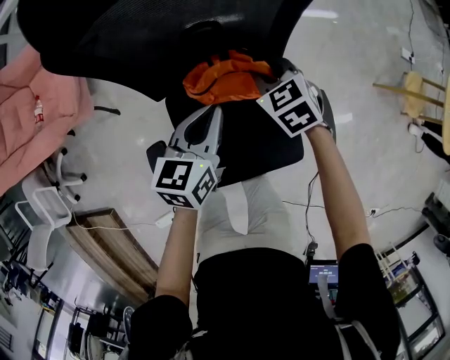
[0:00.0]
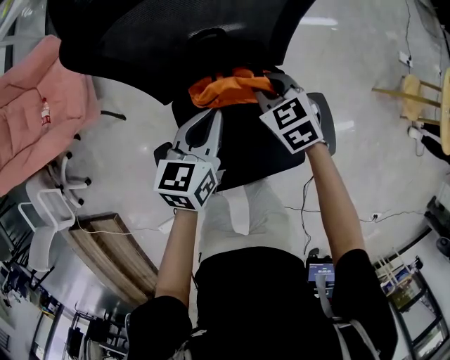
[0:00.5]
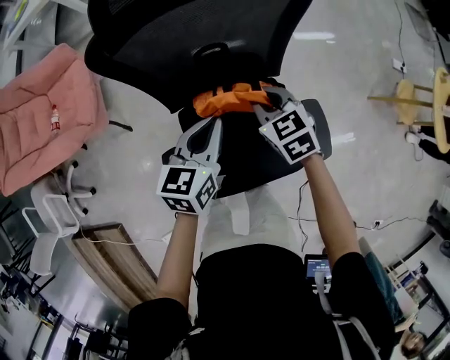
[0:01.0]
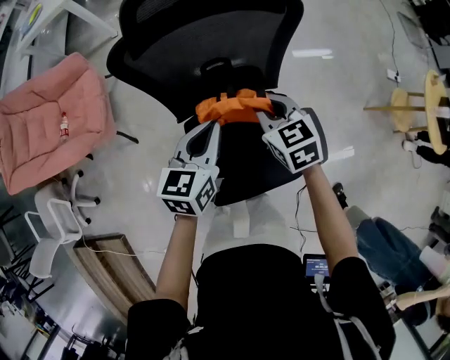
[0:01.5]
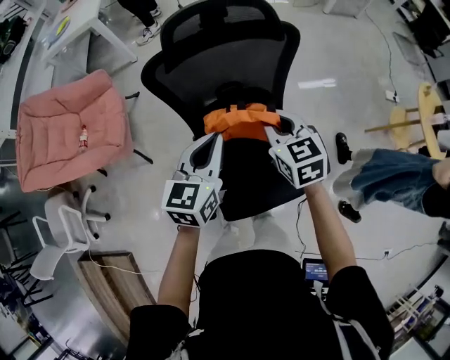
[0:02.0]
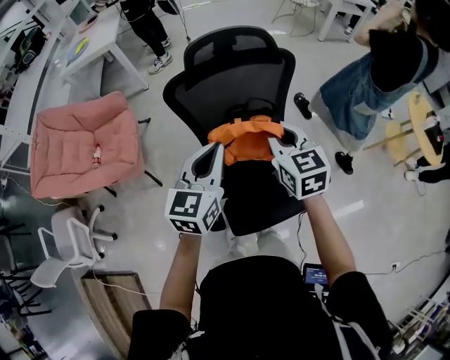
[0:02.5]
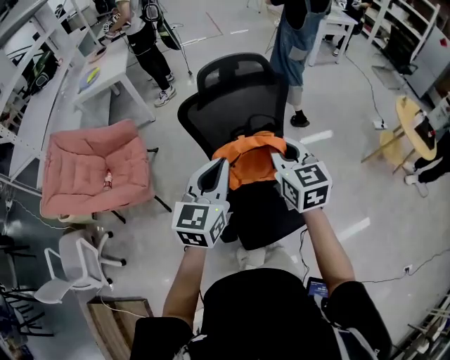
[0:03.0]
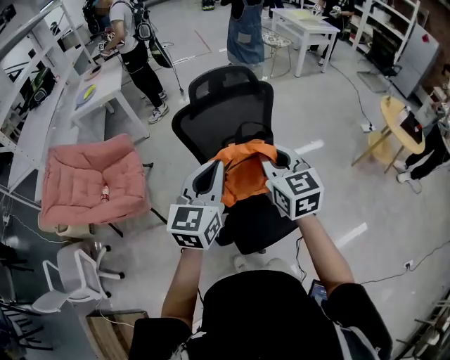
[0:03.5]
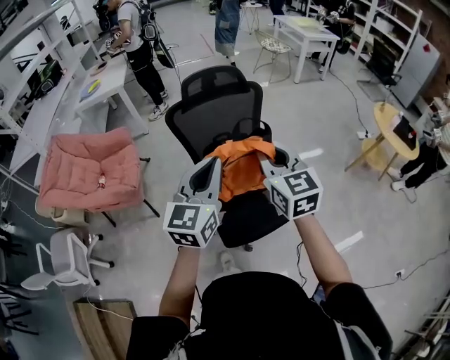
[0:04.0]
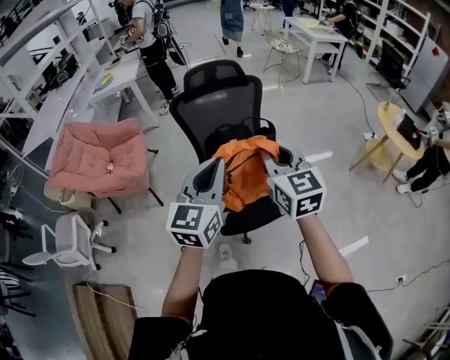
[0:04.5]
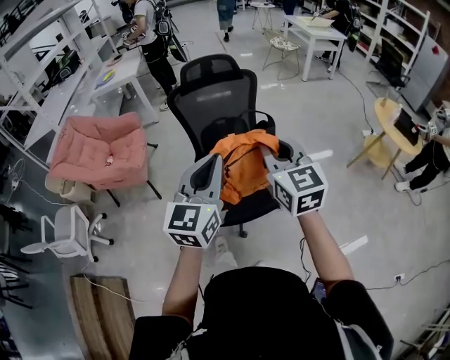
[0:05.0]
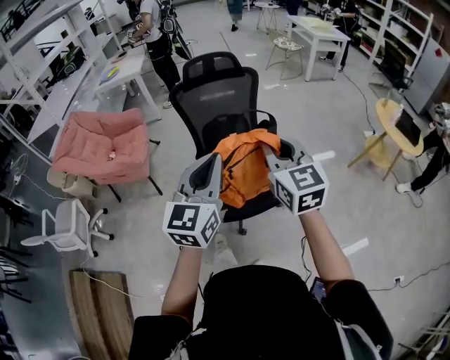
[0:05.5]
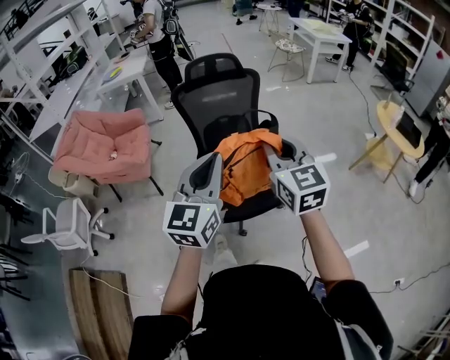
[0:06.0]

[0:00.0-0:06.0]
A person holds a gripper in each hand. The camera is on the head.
0:00.0 to 0:02.0: The grippers both shift upward by approximately 20 cm. The right gripper changes its angle by roughly 30 degrees.
0:02.0 to 0:04.0: The grippers both shift backward and upward by approximately 30 cm. The left gripper rotates about 20 degrees, while the right gripper rotates roughly 20 degrees.
0:04.0 to 0:06.0: The two grippers go about 20 cm backward and to the right.

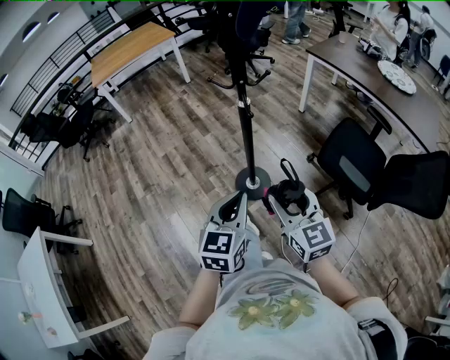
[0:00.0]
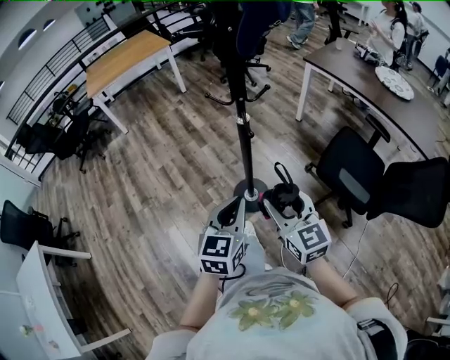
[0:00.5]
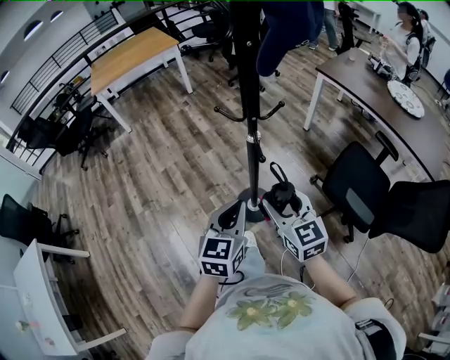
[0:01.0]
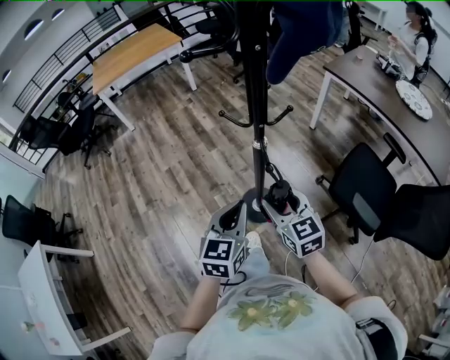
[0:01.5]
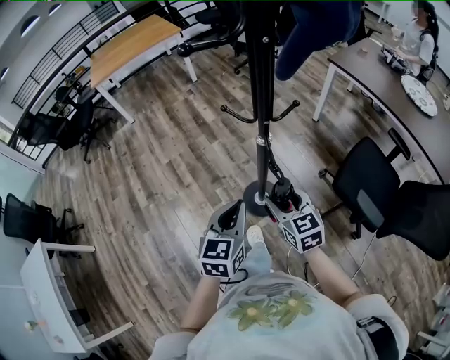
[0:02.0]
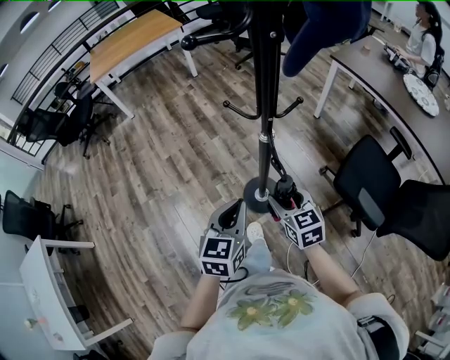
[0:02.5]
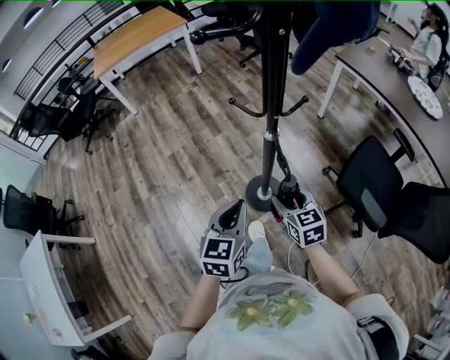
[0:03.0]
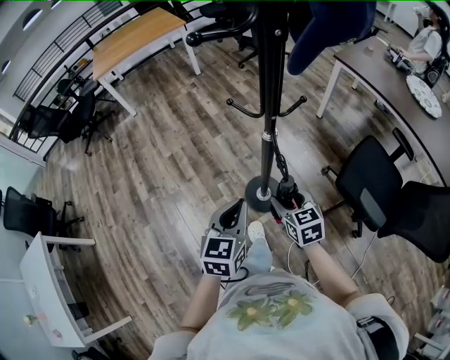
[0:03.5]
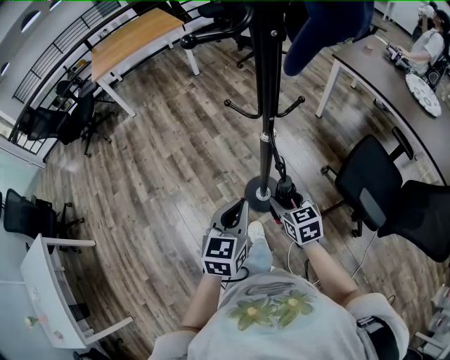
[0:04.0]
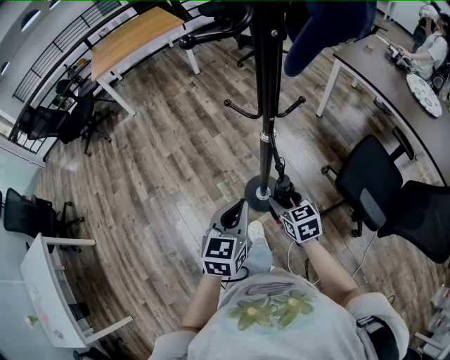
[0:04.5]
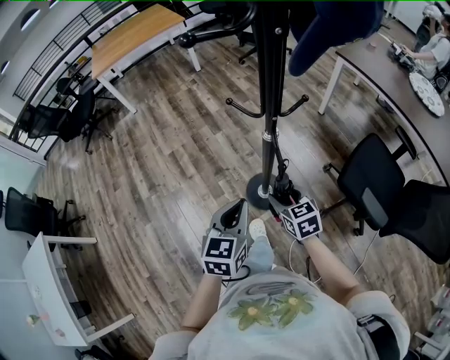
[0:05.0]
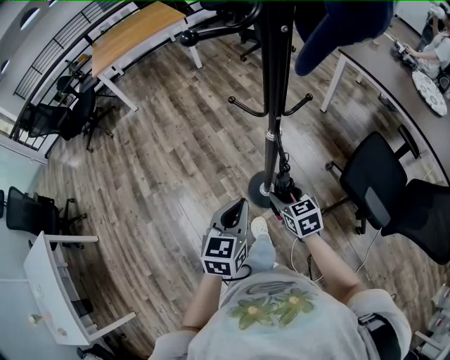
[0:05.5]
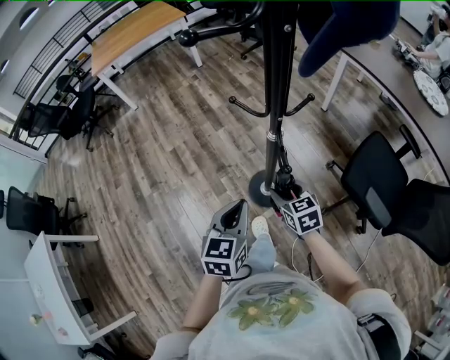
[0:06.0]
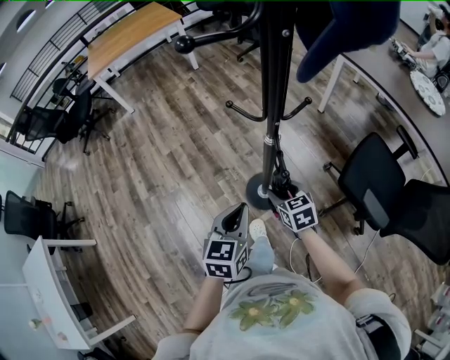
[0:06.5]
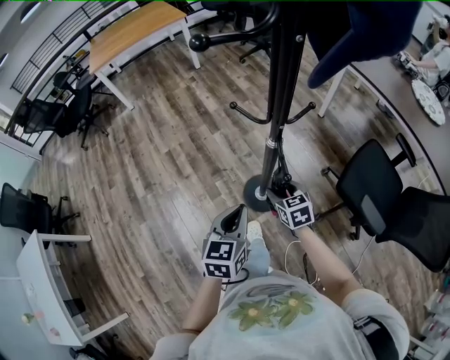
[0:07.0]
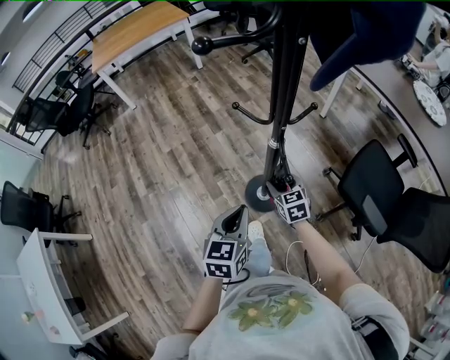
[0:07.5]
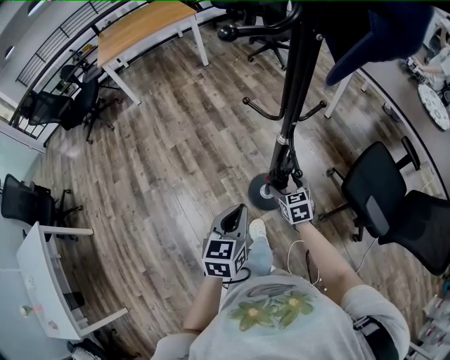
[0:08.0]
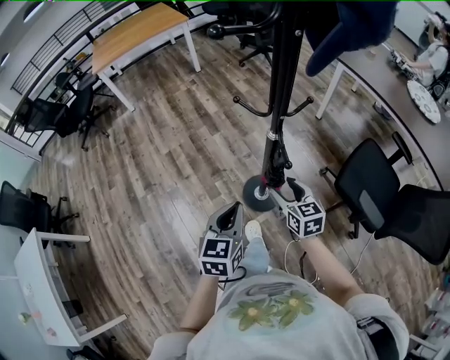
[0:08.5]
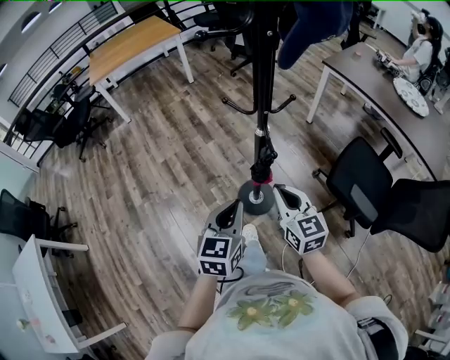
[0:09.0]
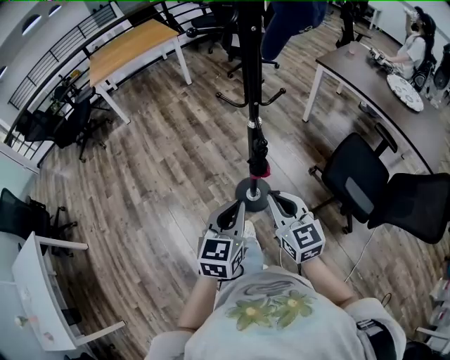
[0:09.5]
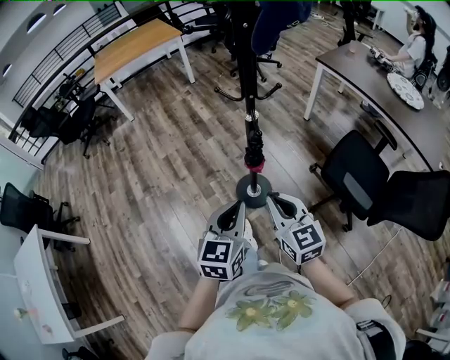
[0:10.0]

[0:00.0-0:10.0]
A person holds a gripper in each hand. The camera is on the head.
0:00.0 to 0:02.0: The right gripper heads forward and downward, covering about 25 cm. The left gripper shifts about 20 cm forward.
0:02.0 to 0:04.0: The right gripper moves downward, some 5 cm.
0:04.0 to 0:06.0: There are only small adjustments of the grippers.
0:06.0 to 0:08.0: The right gripper heads downward, covering some 5 cm, and opens.
0:08.0 to 0:10.0: The left gripper travels backward, upward and to the right by some 20 cm; the right gripper travels upward and backward by roughly 35 cm, changes its angle by about 30 degrees, and closes up.

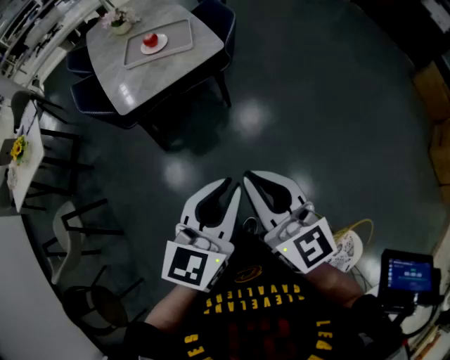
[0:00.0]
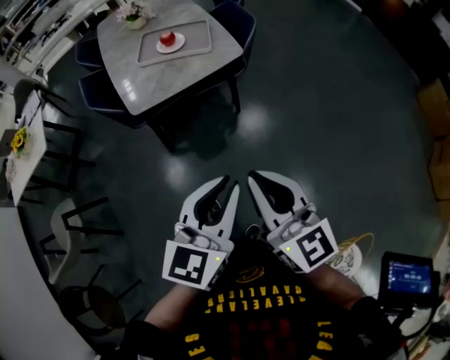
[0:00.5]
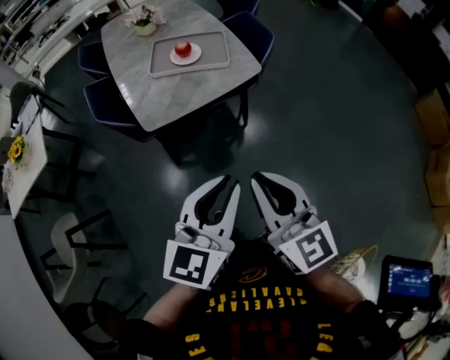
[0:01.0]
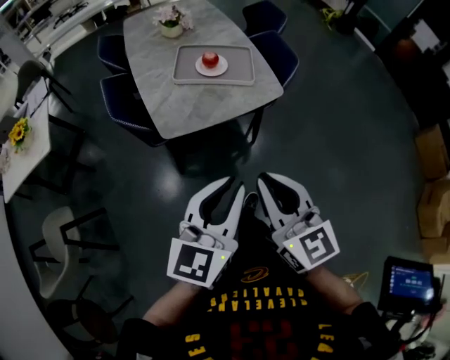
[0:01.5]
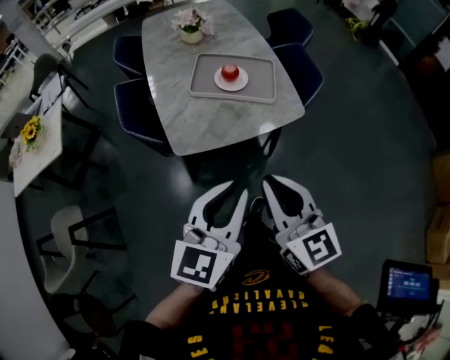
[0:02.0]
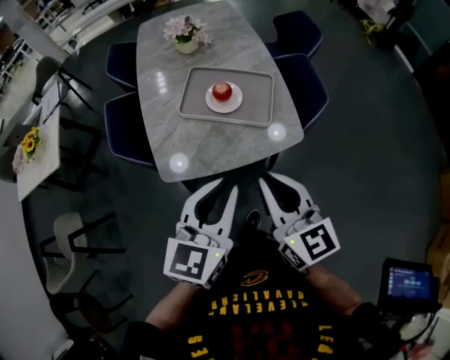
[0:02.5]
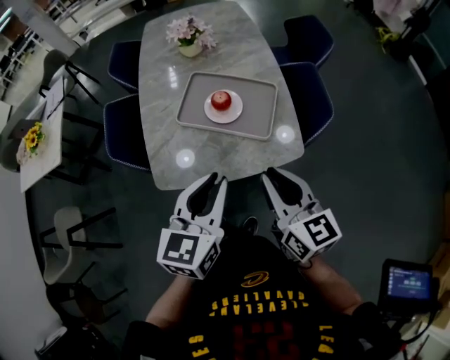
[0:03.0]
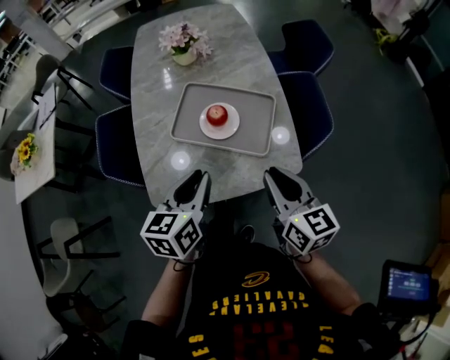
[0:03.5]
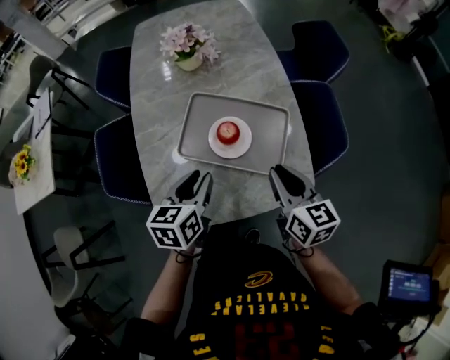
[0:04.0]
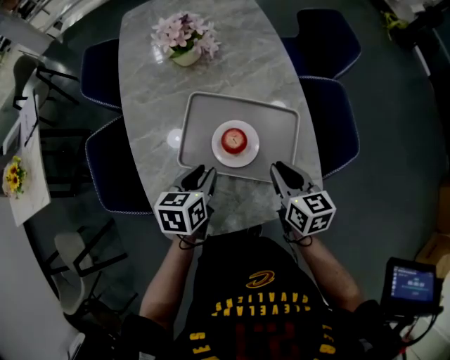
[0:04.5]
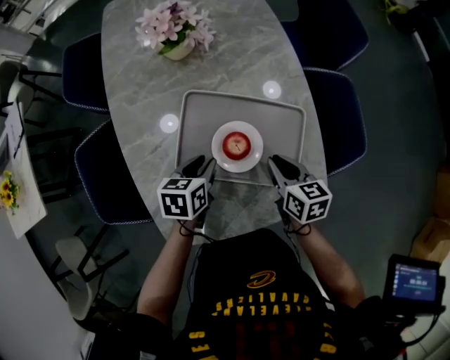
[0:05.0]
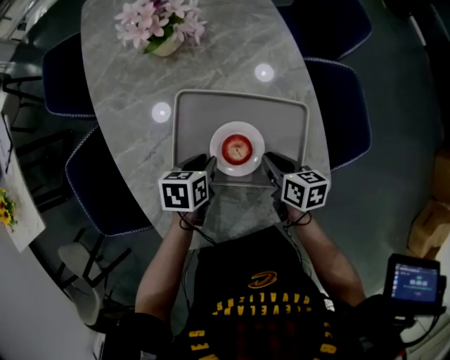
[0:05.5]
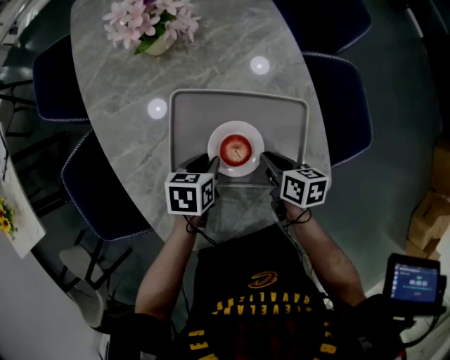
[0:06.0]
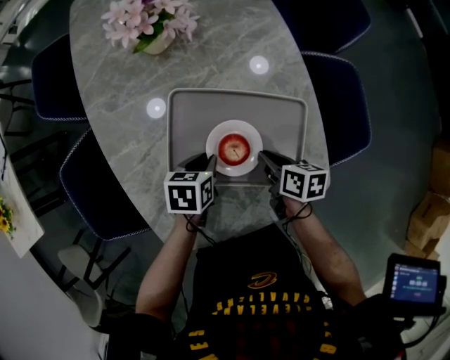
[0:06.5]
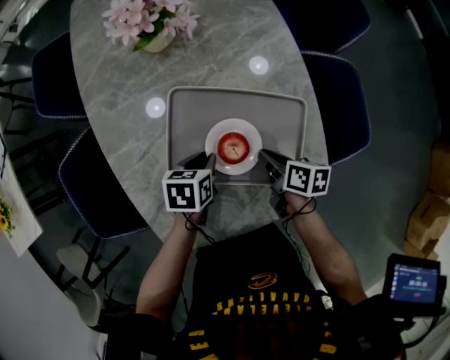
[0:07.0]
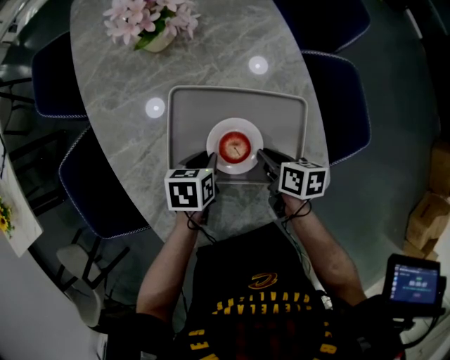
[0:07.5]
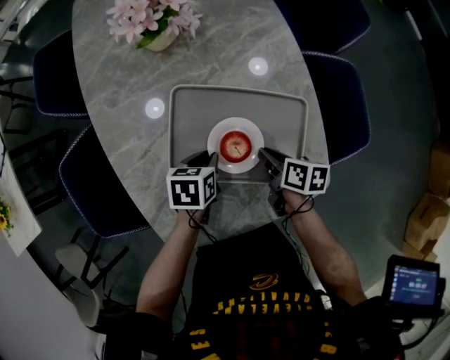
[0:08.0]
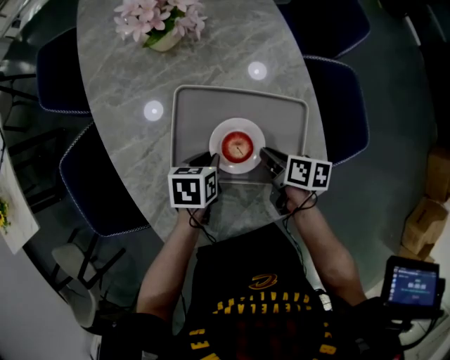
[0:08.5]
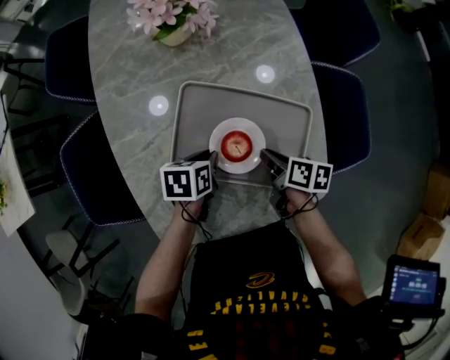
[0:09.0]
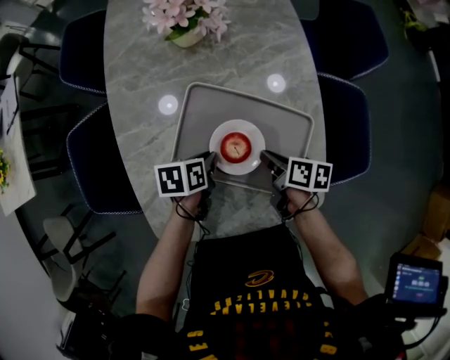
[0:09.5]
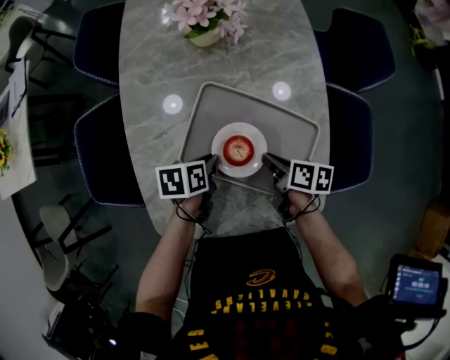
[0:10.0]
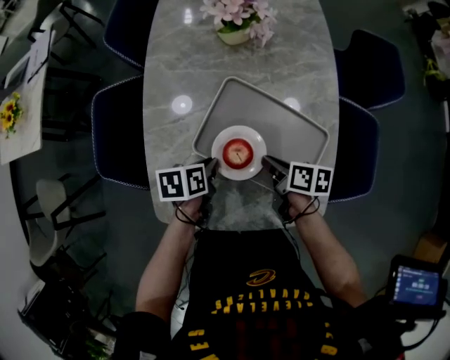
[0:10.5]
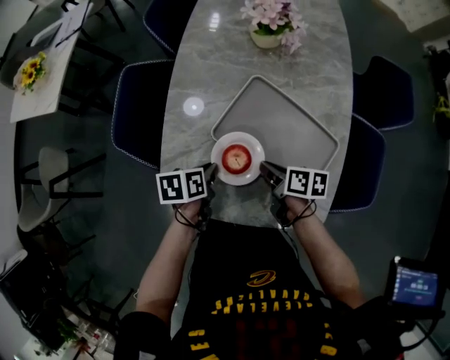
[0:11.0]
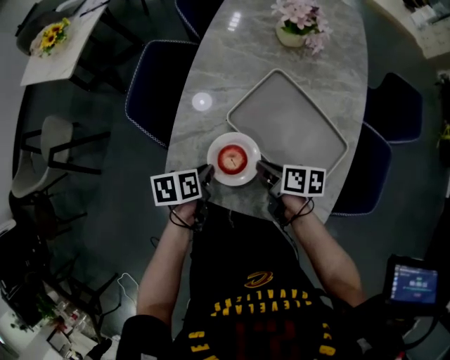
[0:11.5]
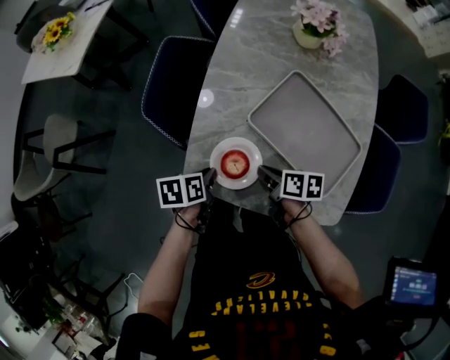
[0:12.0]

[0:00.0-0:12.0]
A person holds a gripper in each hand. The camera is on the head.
0:00.0 to 0:02.0: The two grippers go some 35 cm forward and to the left.
0:02.0 to 0:04.0: Both grippers move forward, about 40 cm. The left gripper rotates roughly 30 degrees, while the right gripper rotates approximately 20 degrees.
0:04.0 to 0:06.0: The two grippers go roughly 25 cm downward and forward. The left gripper rotates about 30 degrees. The right gripper changes its angle by some 40 degrees.
0:06.0 to 0:08.0: There are only small adjustments of the grippers.
0:08.0 to 0:10.0: The left gripper changes its angle by about 20 degrees.
0:10.0 to 0:12.0: The right gripper changes place by roughly 20 cm, and swivels roughly 30 degrees. Meanwhile the left gripper moves roughly 25 cm, and turns by roughly 30 degrees.
